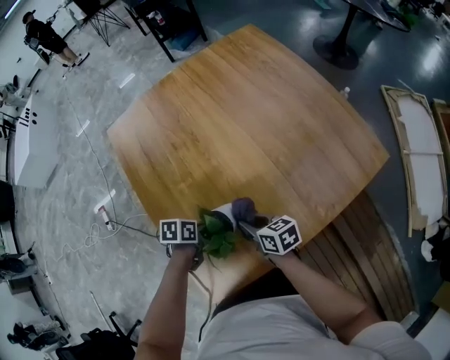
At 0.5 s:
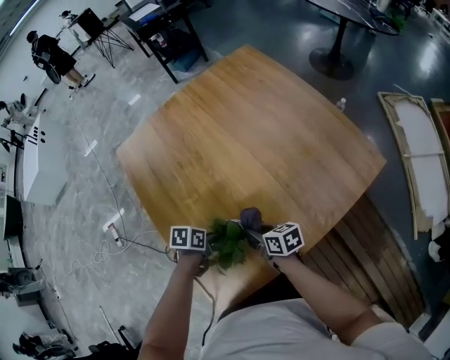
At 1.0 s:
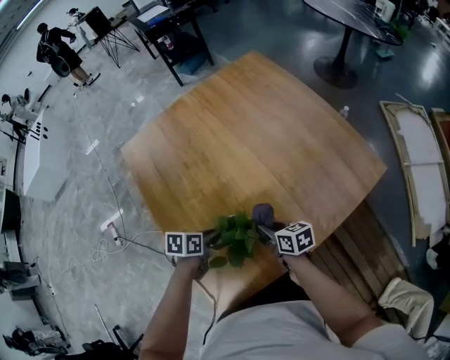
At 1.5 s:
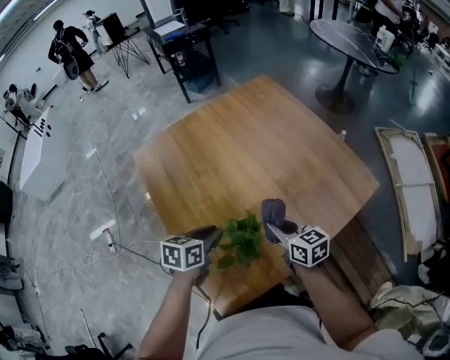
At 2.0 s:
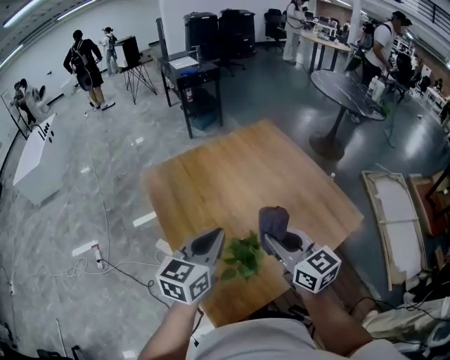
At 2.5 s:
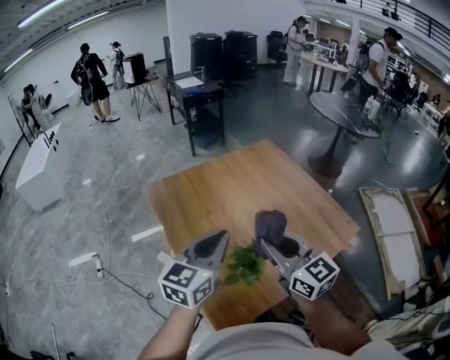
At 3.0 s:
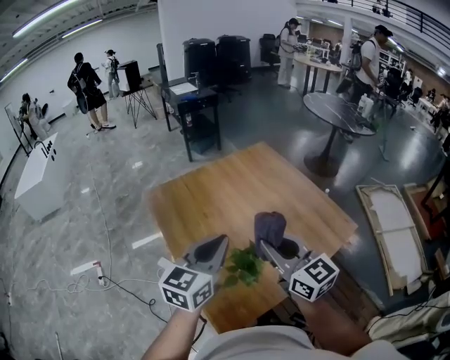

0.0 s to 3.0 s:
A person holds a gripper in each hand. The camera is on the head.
0.0 to 1.5 s: The grippers both shift upward by some 15 cm. The right gripper changes its angle by about 20 degrees. Meanwhile the left gripper changes its angle by some 30 degrees.
1.5 to 3.0 s: Both grippers travel together upward, approximately 30 cm. The right gripper rotates about 30 degrees; the left gripper points its fingers about 30 degrees further upward.

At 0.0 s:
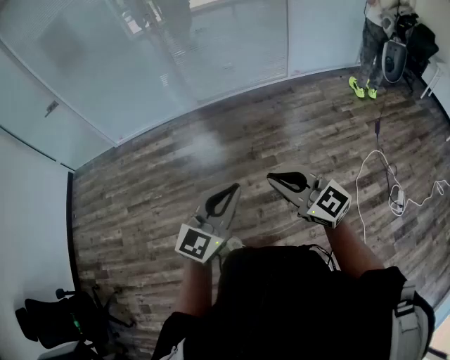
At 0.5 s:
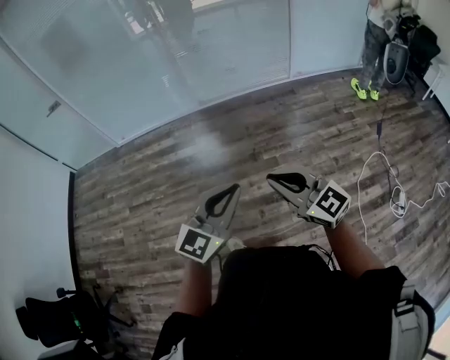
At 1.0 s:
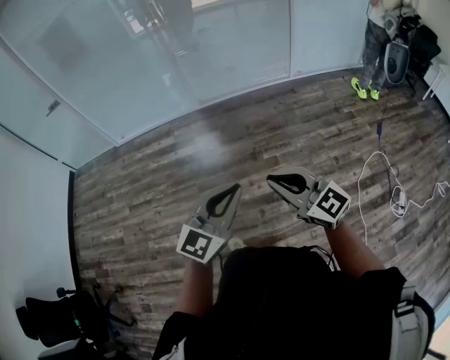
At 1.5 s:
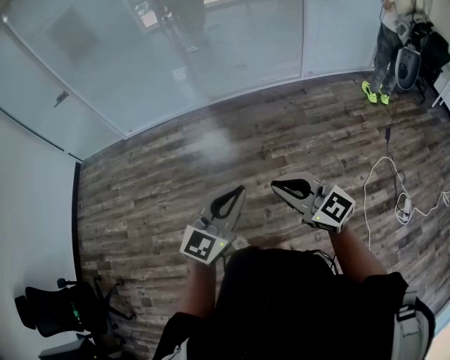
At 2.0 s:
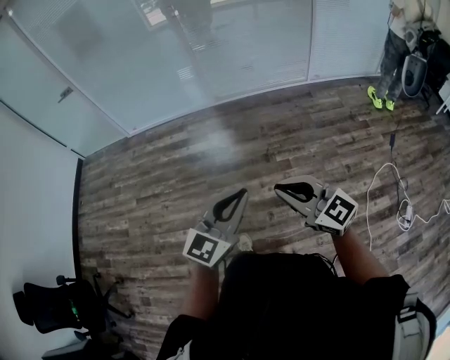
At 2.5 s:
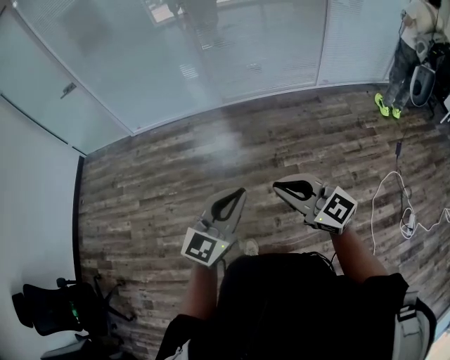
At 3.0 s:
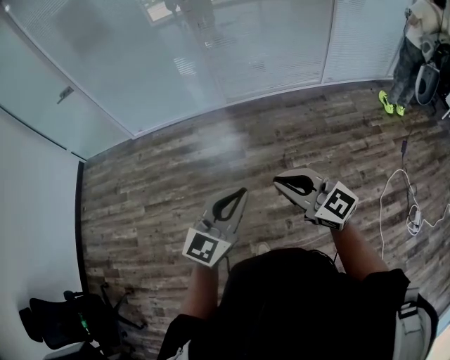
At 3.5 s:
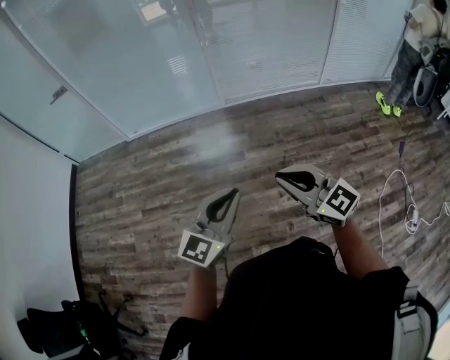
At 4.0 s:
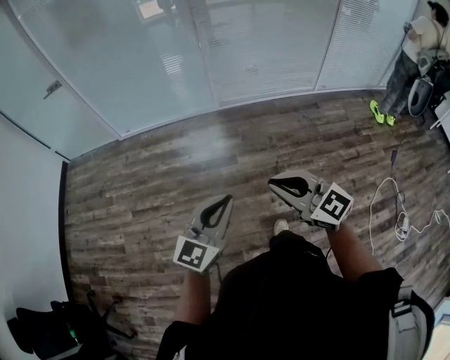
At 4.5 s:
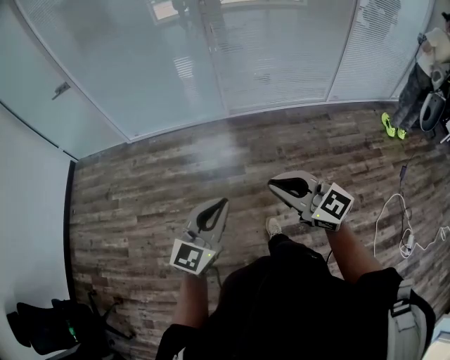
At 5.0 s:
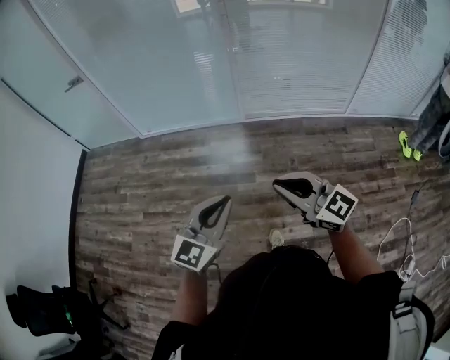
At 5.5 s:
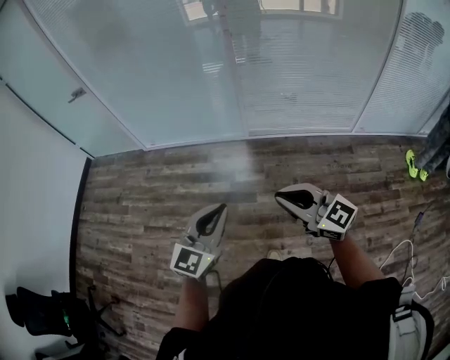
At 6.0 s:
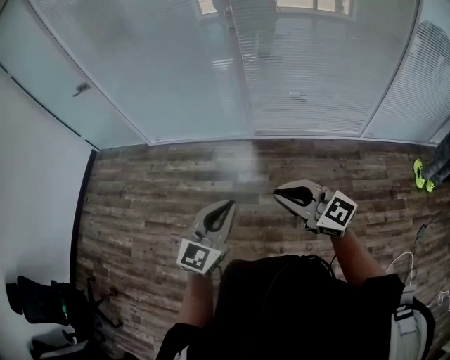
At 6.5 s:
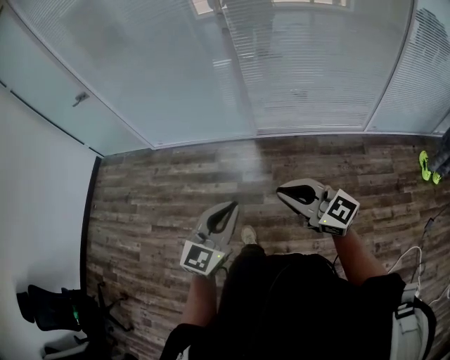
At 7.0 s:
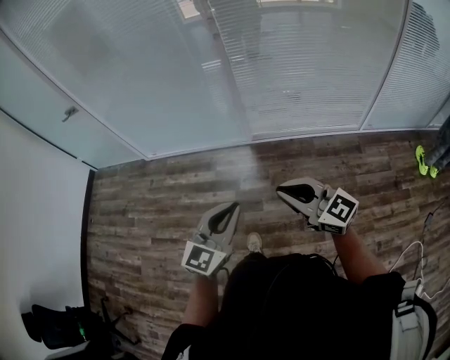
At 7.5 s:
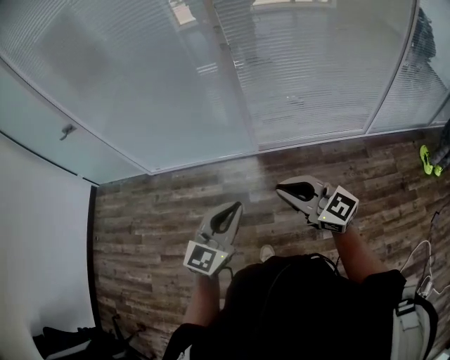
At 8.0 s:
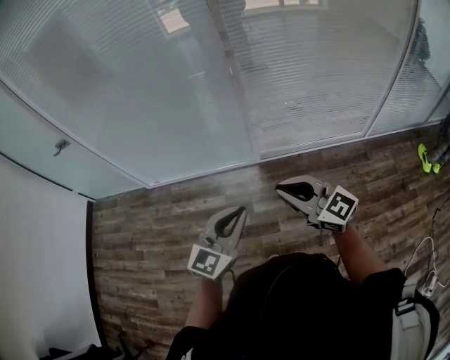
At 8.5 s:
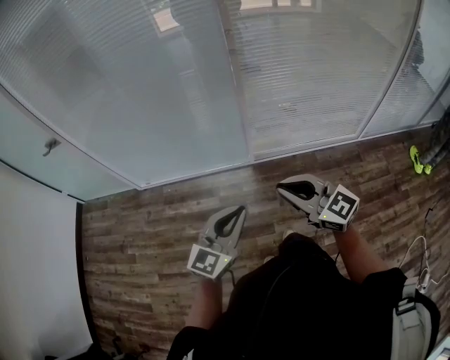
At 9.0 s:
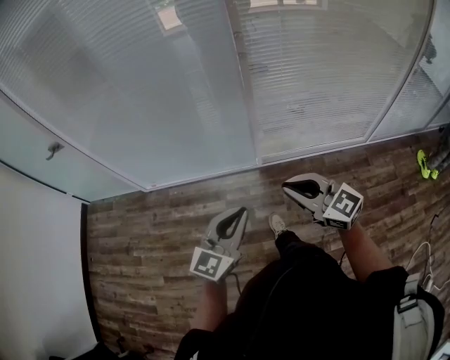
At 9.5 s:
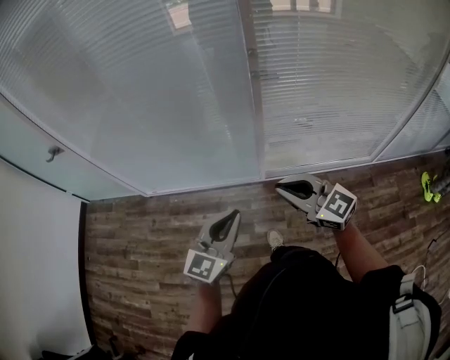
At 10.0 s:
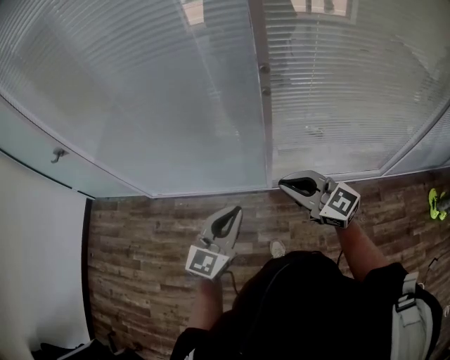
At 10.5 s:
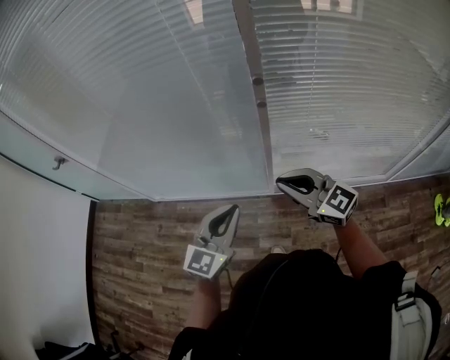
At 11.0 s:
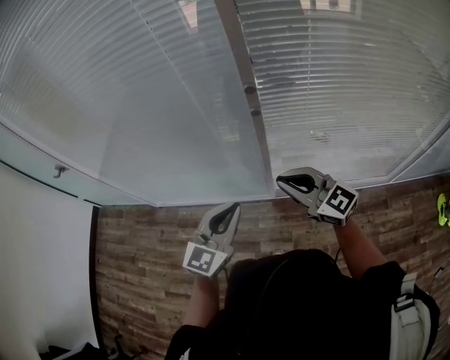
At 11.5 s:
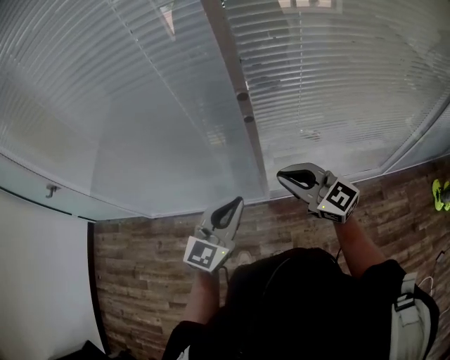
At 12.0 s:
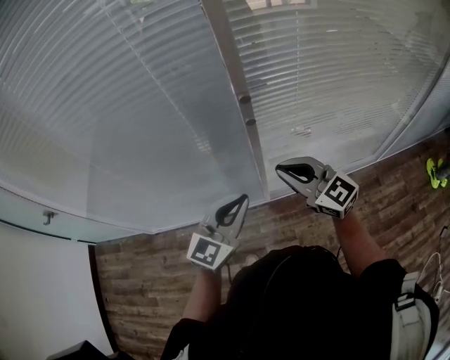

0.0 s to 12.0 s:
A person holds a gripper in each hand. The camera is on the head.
0.0 to 2.0 s: The grippers stay close to where they were, moving slightly.
2.0 to 4.0 s: The left gripper is displaced to the left and forward by some 25 cm. Meanwhile the right gripper is displaced forward and to the left by some 25 cm.
4.0 to 6.0 s: Both grippers travel together forward and to the right, roughly 25 cm.
6.0 to 8.0 s: Both grippers travel together forward, about 25 cm.
8.0 to 10.0 s: The two grippers go some 25 cm forward.
10.0 to 12.0 s: The right gripper travels forward by some 15 cm; the left gripper moves forward and to the right, about 15 cm.

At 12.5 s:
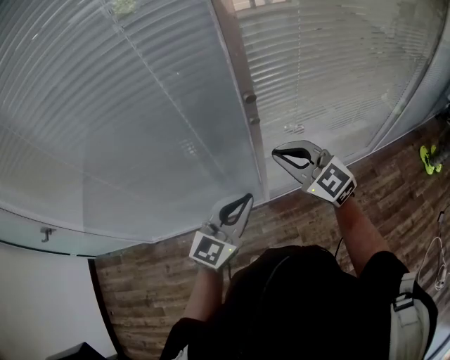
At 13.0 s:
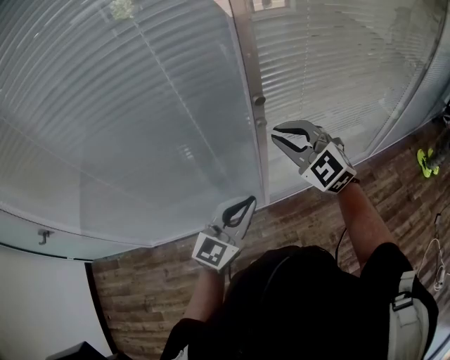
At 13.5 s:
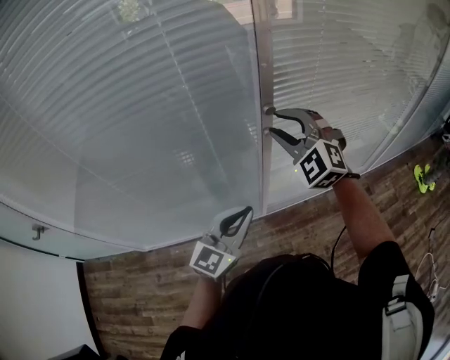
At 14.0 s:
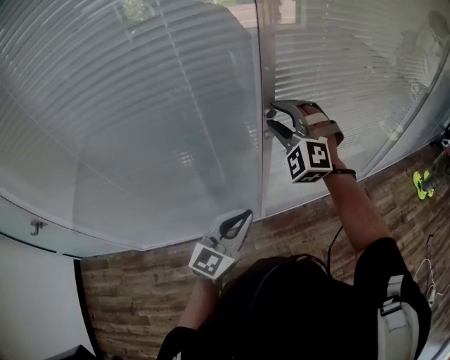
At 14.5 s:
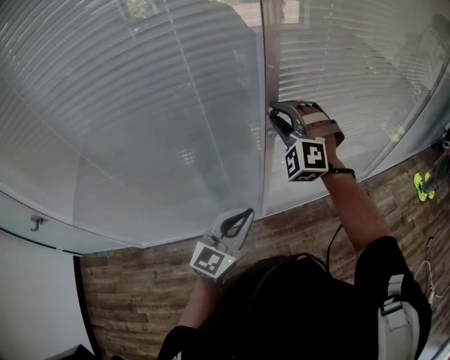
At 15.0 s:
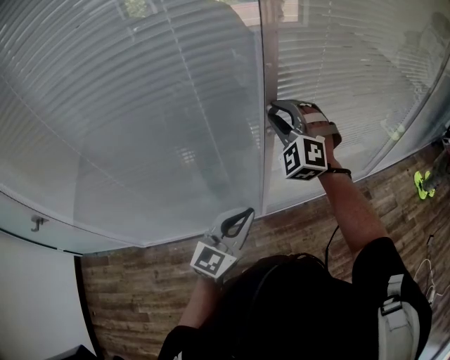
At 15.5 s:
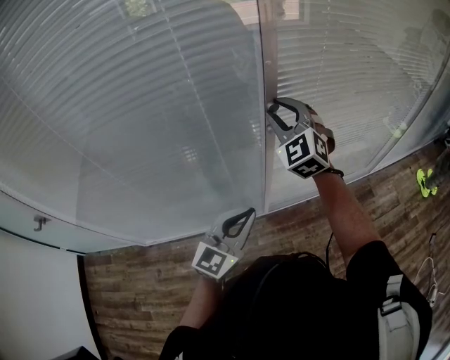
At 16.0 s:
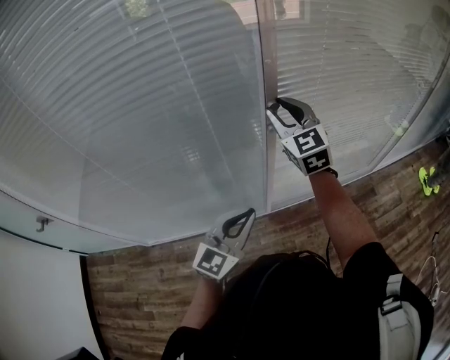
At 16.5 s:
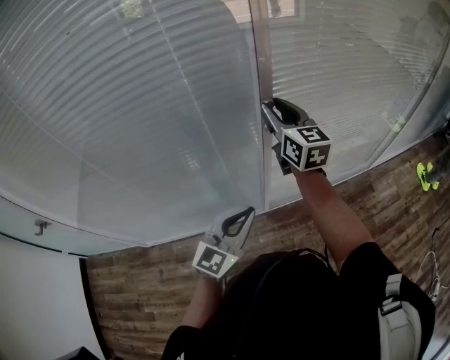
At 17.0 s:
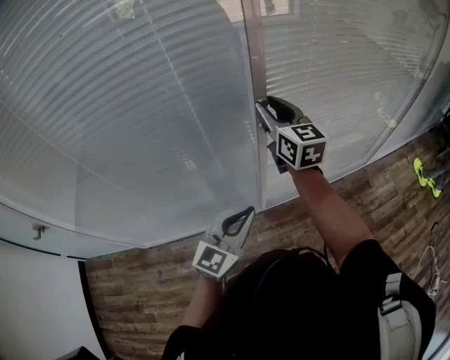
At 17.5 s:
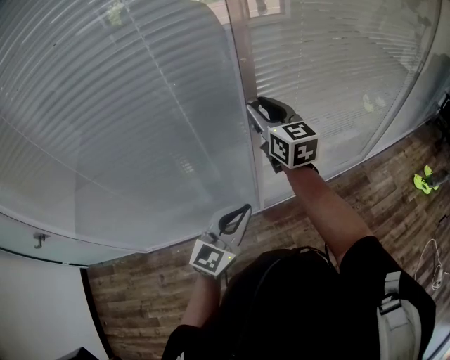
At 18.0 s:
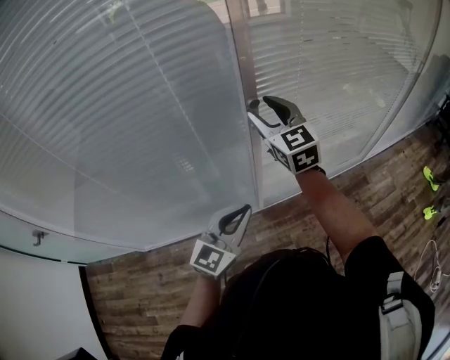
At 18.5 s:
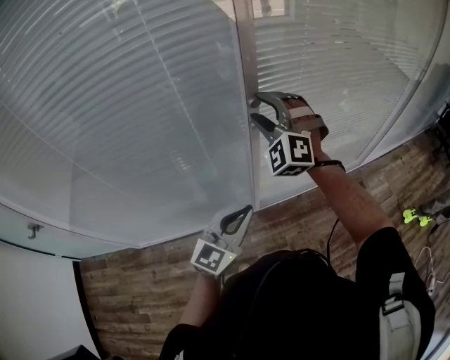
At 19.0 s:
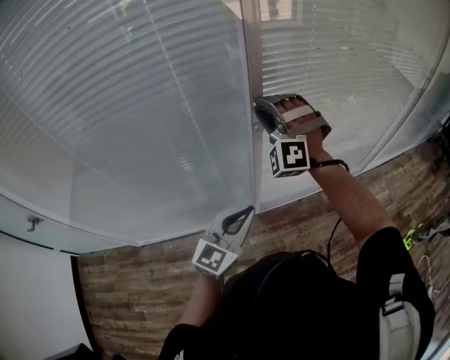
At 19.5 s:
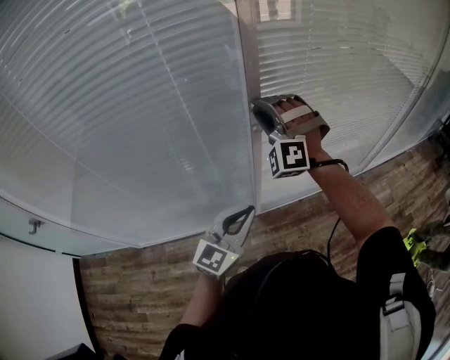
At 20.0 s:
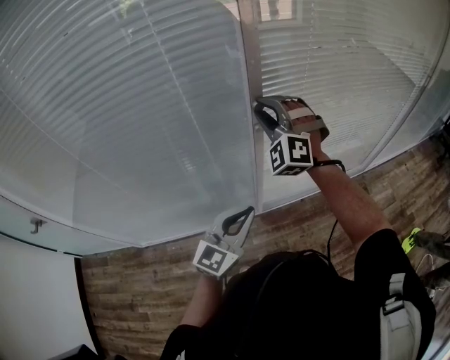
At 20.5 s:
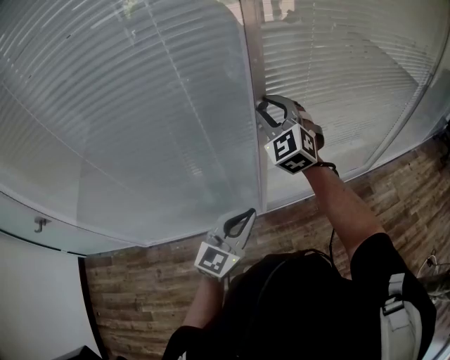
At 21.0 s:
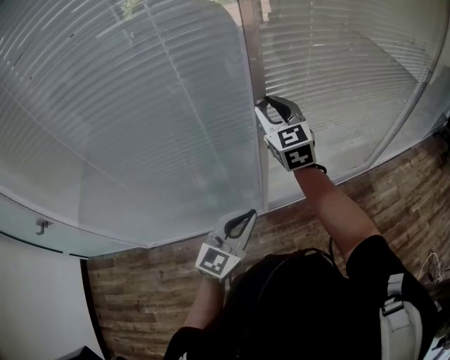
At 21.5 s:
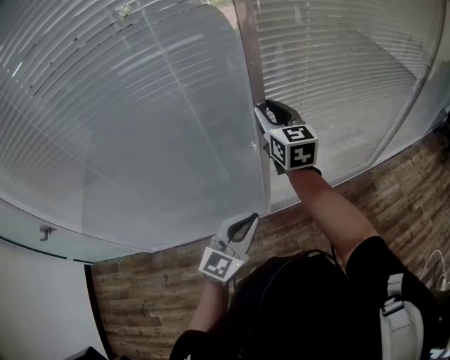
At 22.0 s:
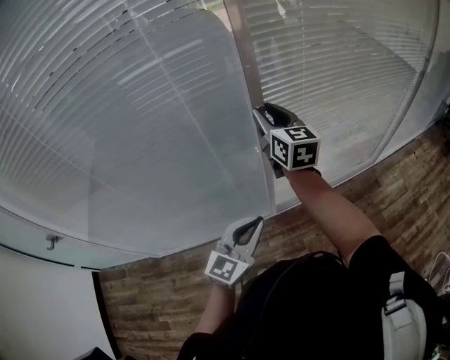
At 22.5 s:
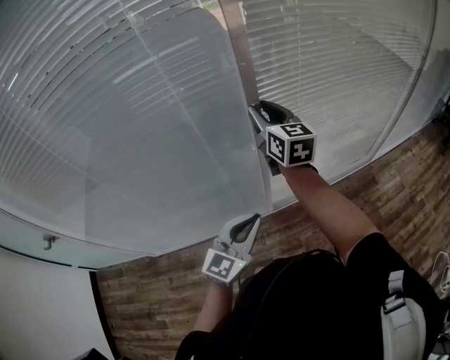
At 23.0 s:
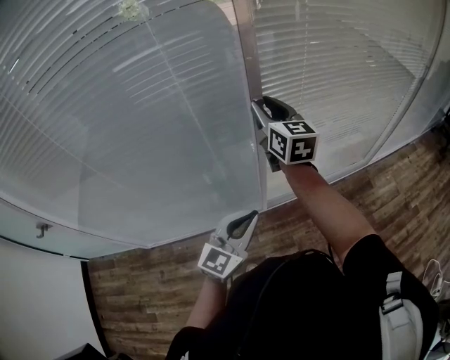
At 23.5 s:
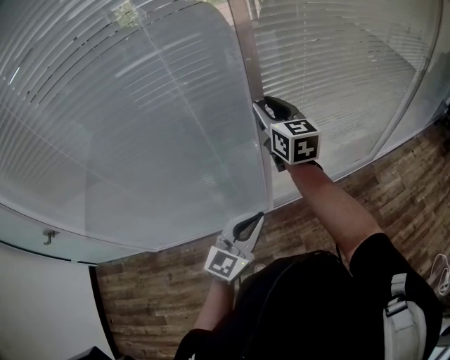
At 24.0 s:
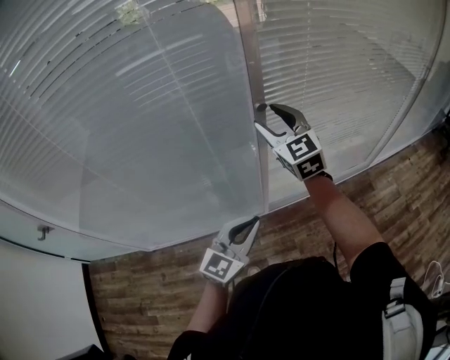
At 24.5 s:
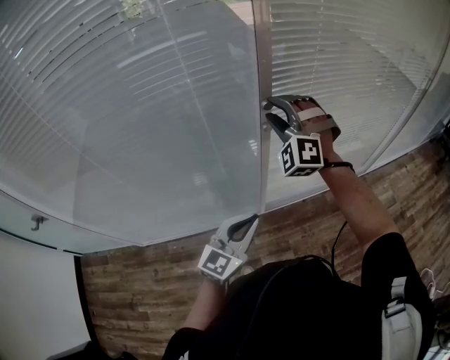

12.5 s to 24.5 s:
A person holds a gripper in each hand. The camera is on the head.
12.5 to 14.5 s: The right gripper moves forward and upward, approximately 15 cm, twists about 50 degrees counterclockwise, seen from behind, and opens.
14.5 to 16.5 s: The right gripper rolls clockwise, seen from behind, by roughly 80 degrees.
16.5 to 18.5 s: The right gripper twists about 80 degrees counterclockwise, seen from behind, and opens.
18.5 to 20.5 s: The right gripper changes its angle by roughly 30 degrees, and closes.
20.5 to 22.5 s: The right gripper rotates around the line of its fingers by roughly 60 degrees, clockwise from behind.
22.5 to 24.5 s: The right gripper rotates around the line of its fingers by approximately 90 degrees, counterclockwise from behind.
